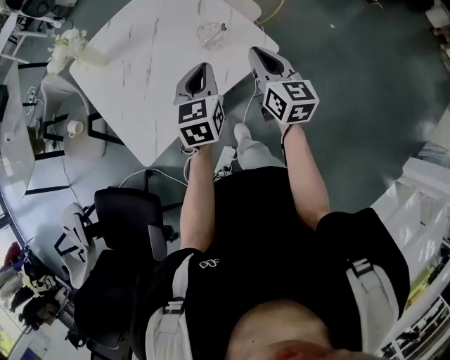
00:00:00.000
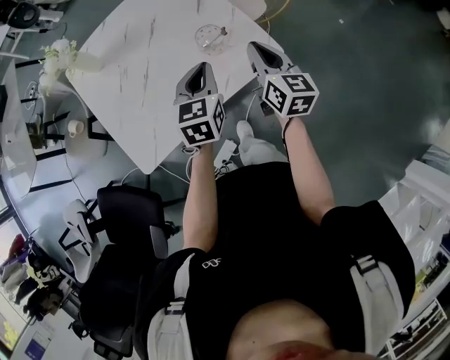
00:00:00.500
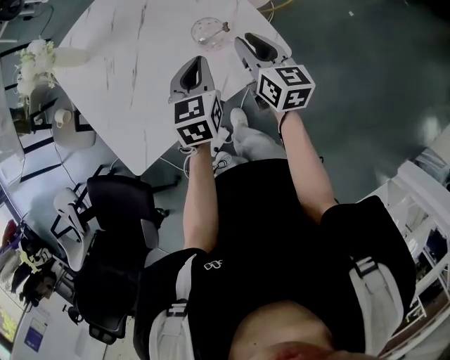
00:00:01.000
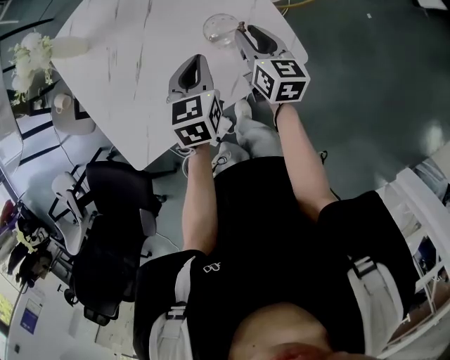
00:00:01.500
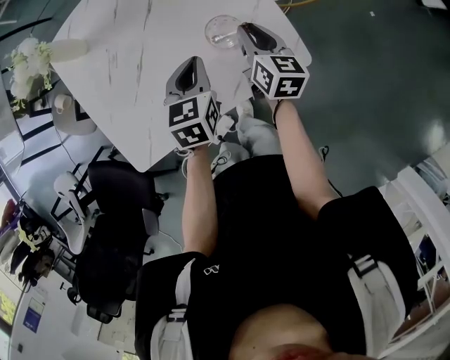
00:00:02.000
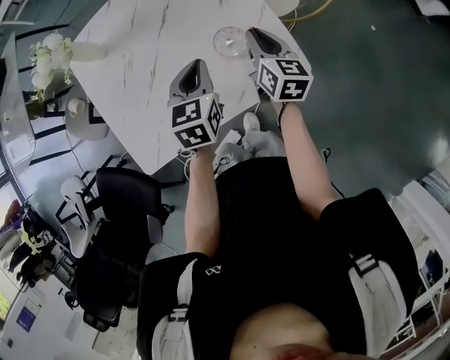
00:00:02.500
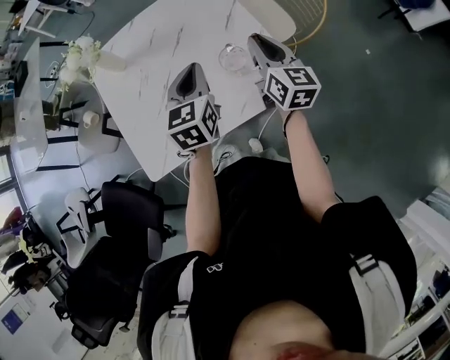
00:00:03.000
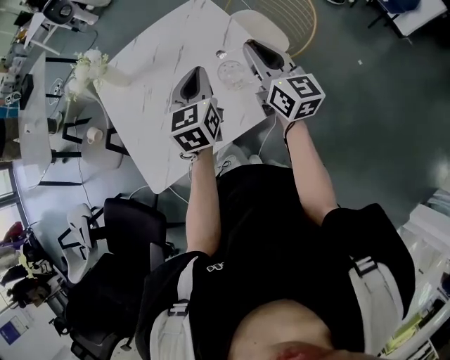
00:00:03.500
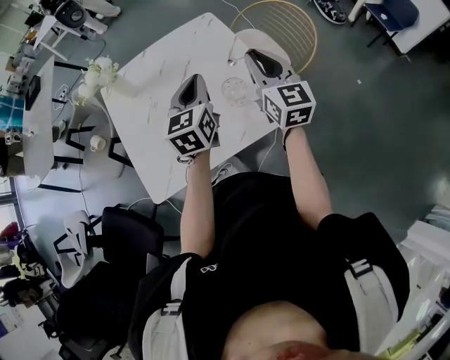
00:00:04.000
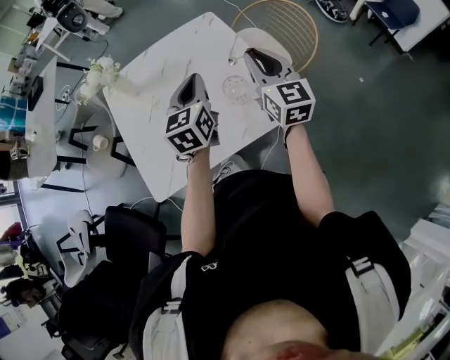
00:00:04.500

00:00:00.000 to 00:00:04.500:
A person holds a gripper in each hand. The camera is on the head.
00:00:00.000 to 00:00:02.000: The right gripper travels forward and downward by roughly 25 cm. Meanwhile the left gripper goes approximately 15 cm downward and forward.
00:00:02.000 to 00:00:04.500: Both grippers travel together upward, approximately 20 cm. The right gripper rotates roughly 30 degrees. Meanwhile the left gripper swivels about 20 degrees.

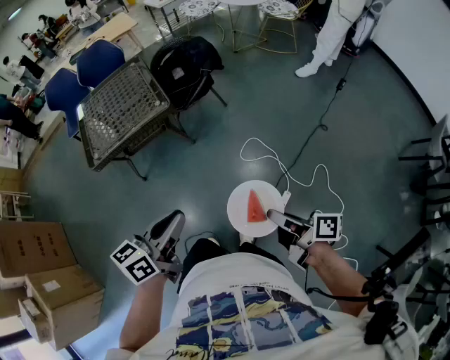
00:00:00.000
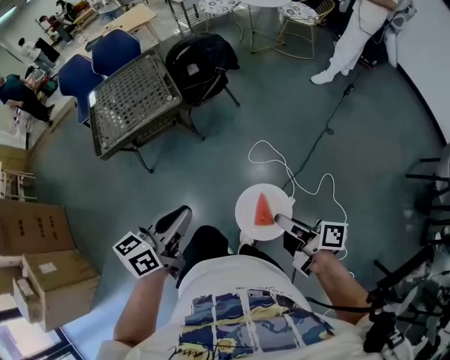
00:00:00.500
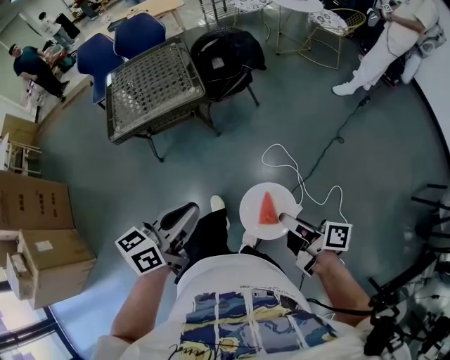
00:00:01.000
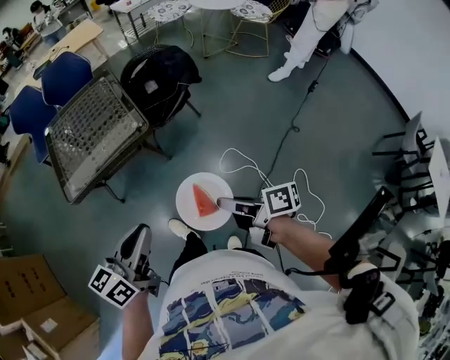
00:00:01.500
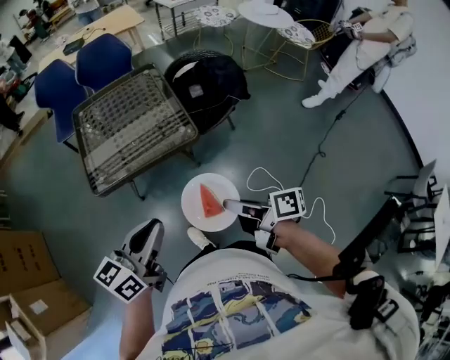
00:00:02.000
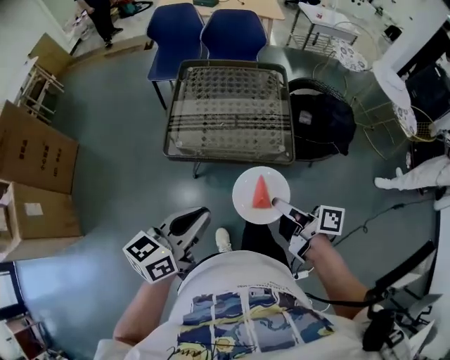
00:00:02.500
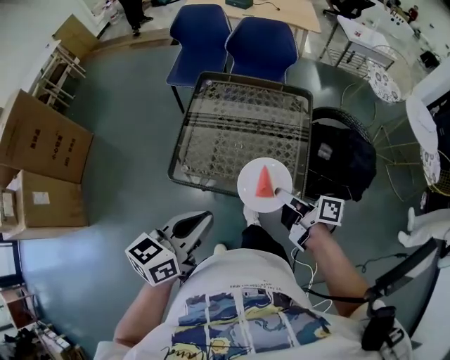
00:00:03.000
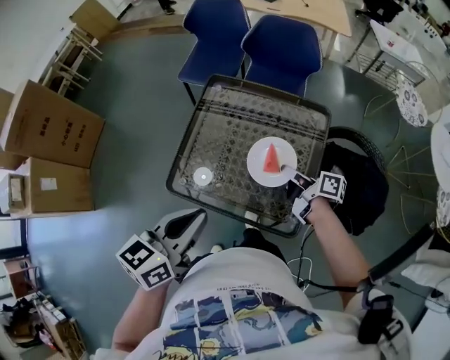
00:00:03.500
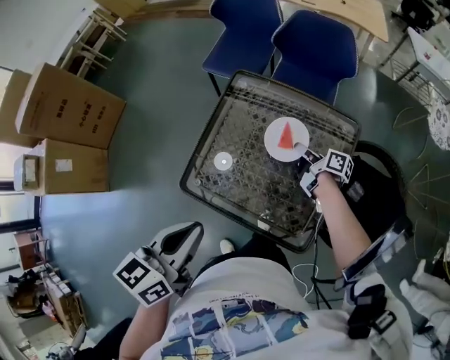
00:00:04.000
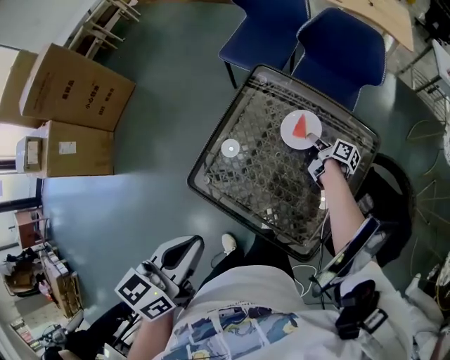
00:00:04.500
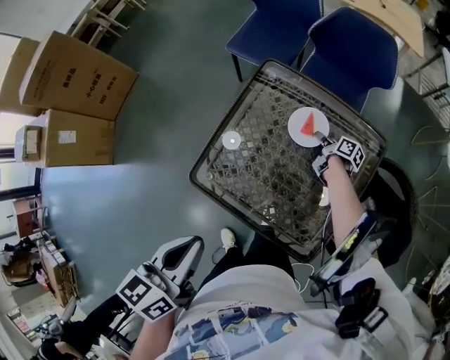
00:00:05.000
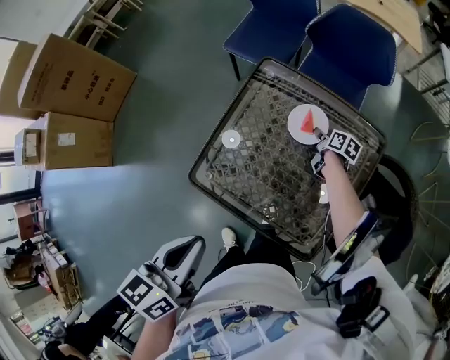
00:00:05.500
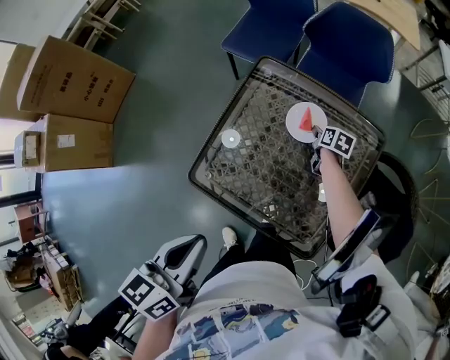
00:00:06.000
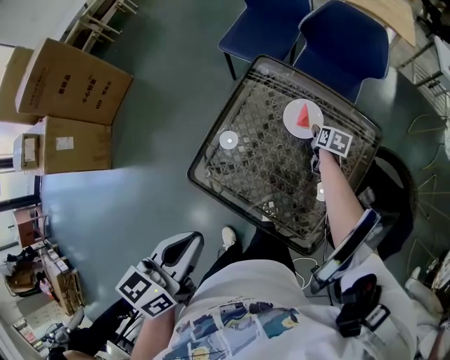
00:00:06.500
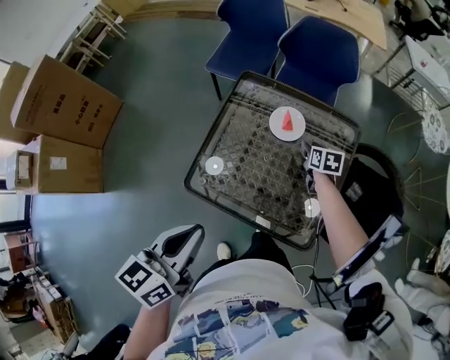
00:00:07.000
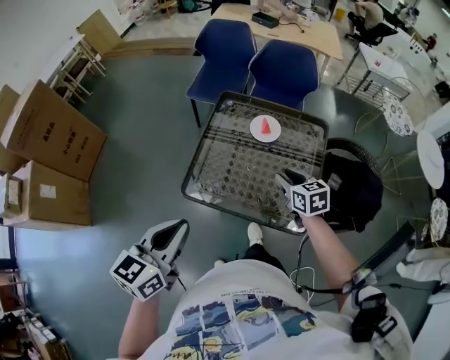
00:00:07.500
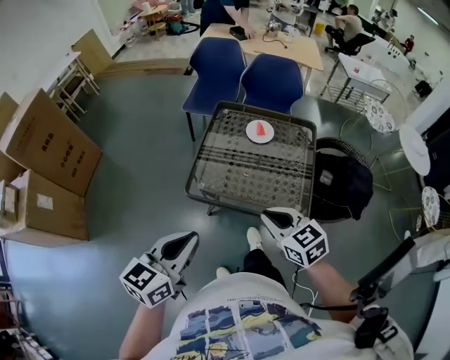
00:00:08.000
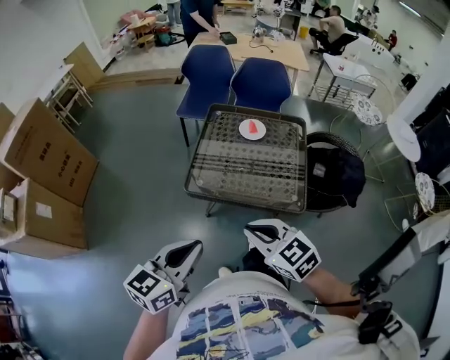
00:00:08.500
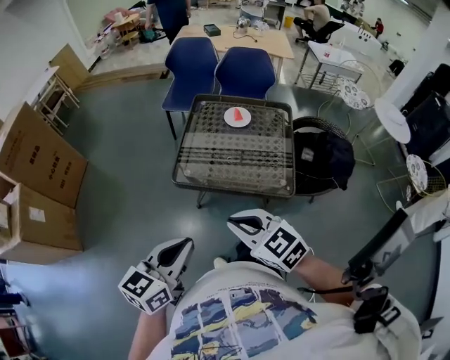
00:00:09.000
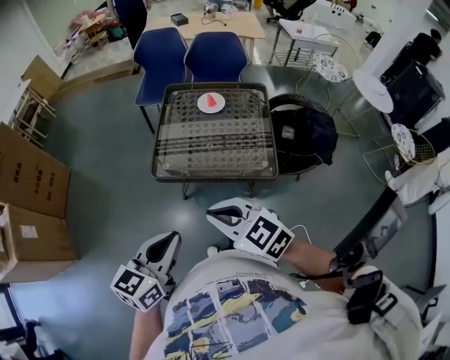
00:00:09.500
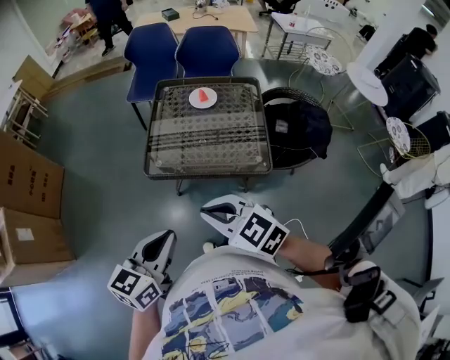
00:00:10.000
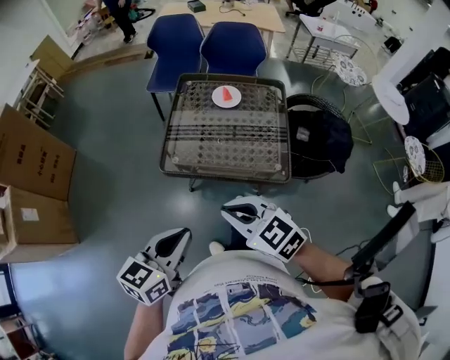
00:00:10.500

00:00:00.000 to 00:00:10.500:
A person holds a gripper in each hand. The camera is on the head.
00:00:00.000 to 00:00:02.000: Both grippers move forward and to the left, roughly 30 cm.
00:00:02.000 to 00:00:04.000: The left gripper ends up some 40 cm from where it was, and changes its angle by some 50 degrees; the right gripper changes place by roughly 70 cm, and turns by some 30 degrees.
00:00:04.000 to 00:00:06.500: The right gripper is displaced downward and forward by approximately 15 cm, points its fingers approximately 40 degrees further downward, and opens its fingers.
00:00:06.500 to 00:00:08.500: The left gripper shifts approximately 25 cm backward, and changes its angle by some 40 degrees. The right gripper travels backward, upward and to the left by some 70 cm, rolls counterclockwise, seen from behind, by some 40 degrees, and closes its fingers.
00:00:08.500 to 00:00:10.500: The left gripper ends up some 5 cm from where it was.

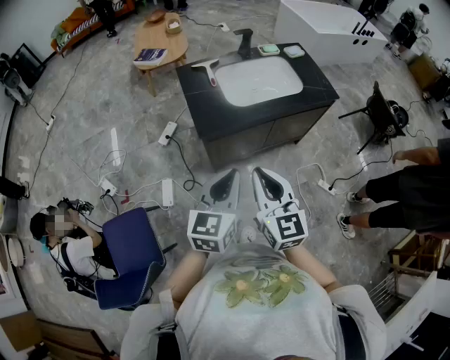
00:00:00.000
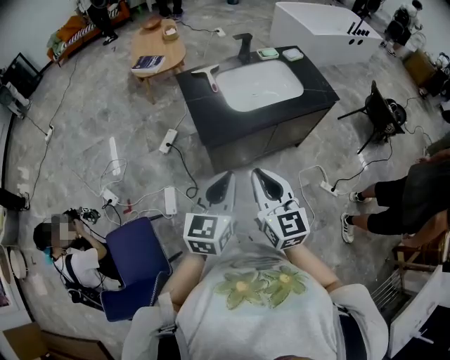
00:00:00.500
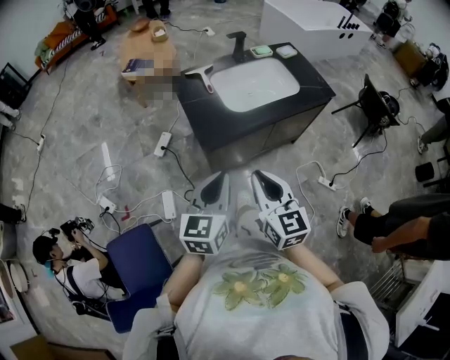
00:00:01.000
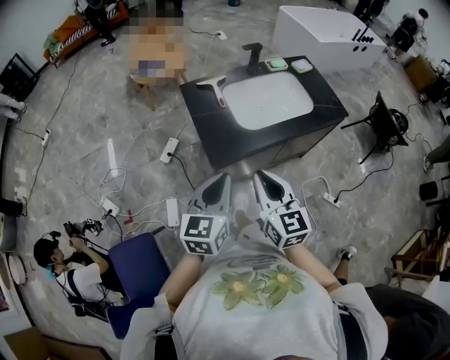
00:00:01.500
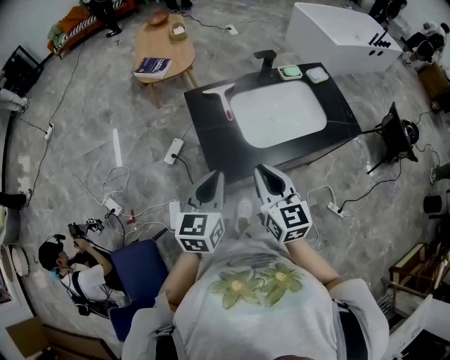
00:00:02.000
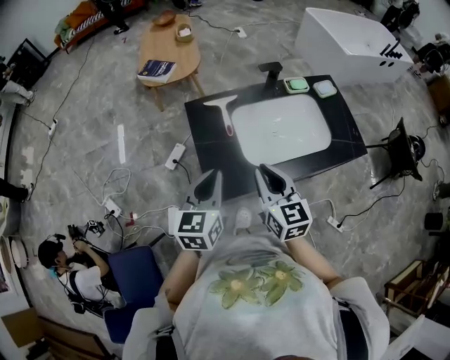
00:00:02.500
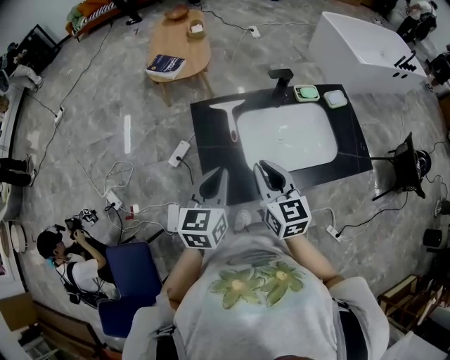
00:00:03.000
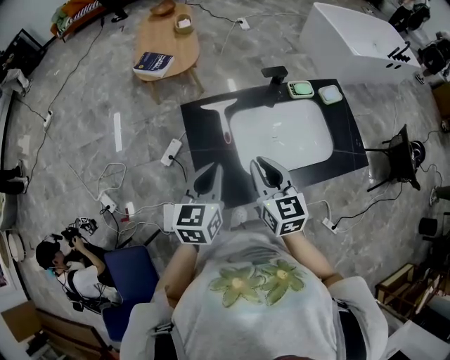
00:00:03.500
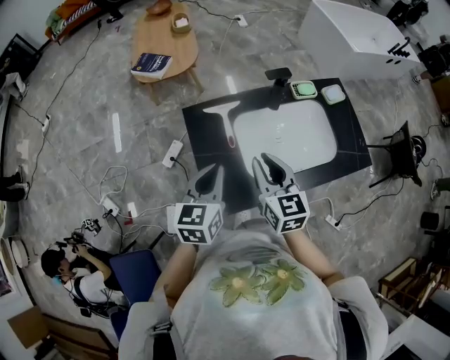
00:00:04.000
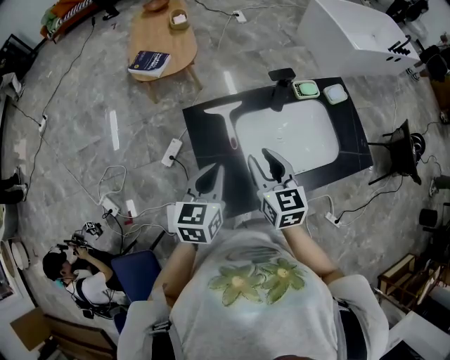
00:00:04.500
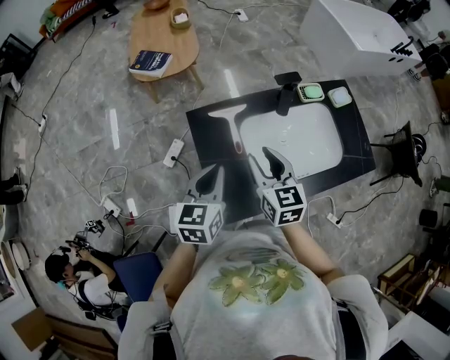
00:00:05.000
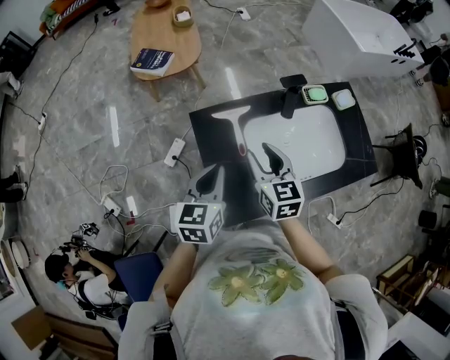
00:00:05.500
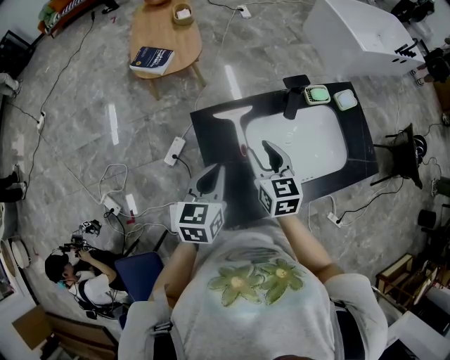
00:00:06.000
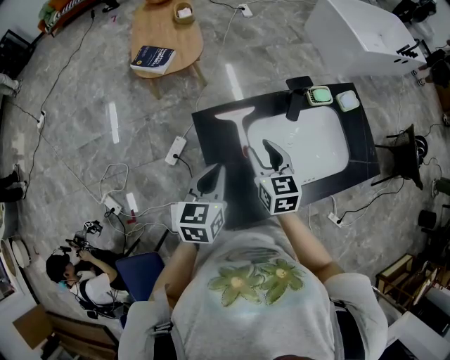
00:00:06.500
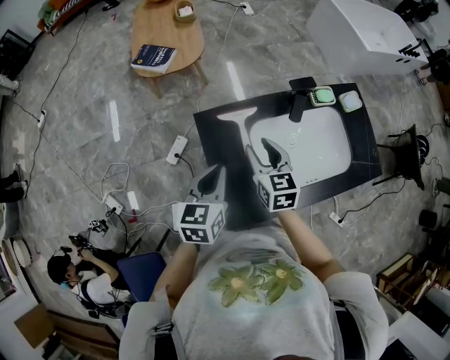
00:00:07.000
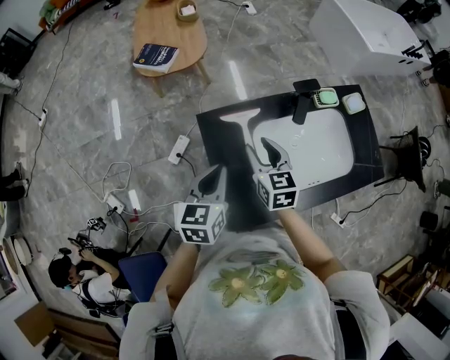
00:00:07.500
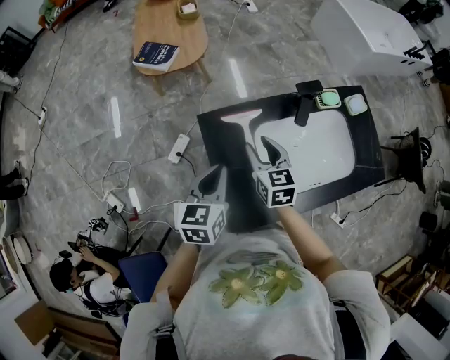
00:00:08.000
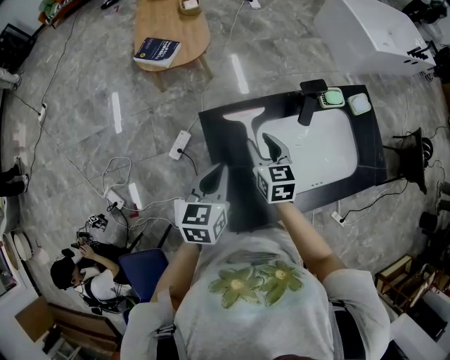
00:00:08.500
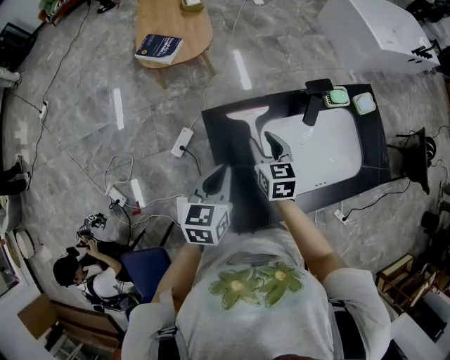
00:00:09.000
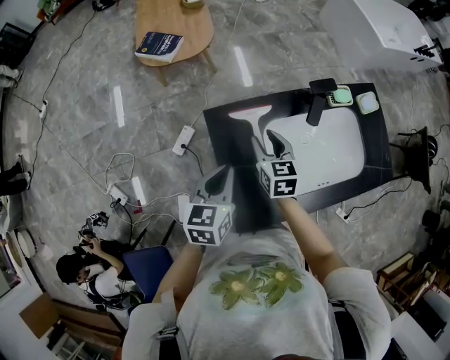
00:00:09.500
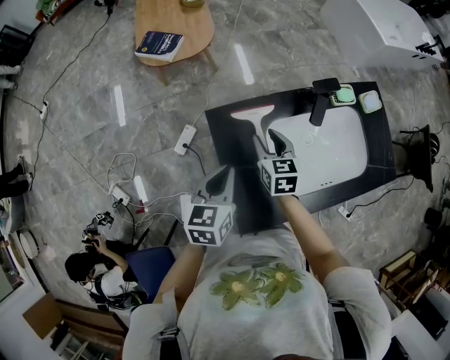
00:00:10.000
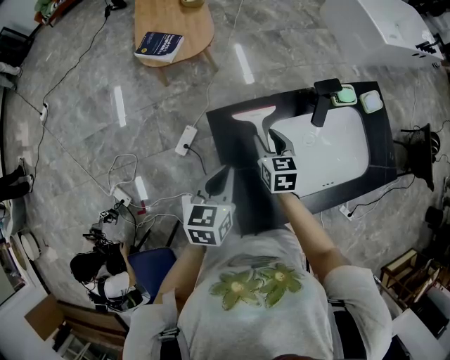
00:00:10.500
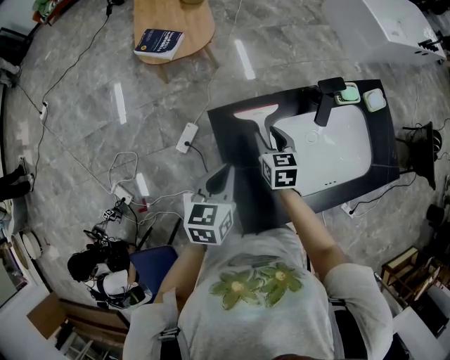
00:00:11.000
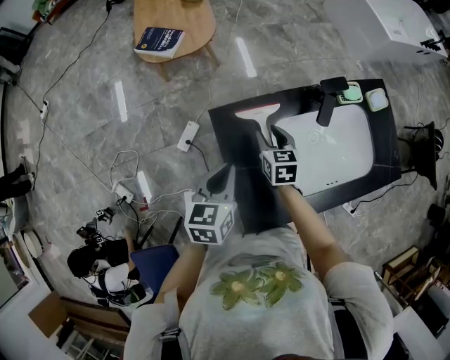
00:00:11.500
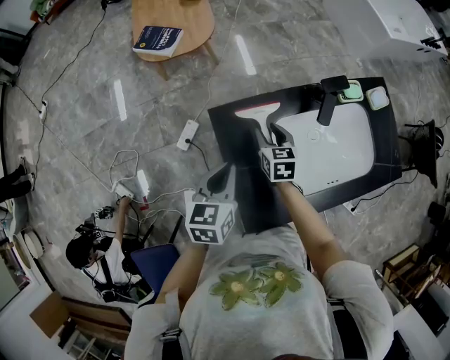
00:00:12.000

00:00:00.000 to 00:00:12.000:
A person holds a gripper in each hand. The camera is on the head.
00:00:00.000 to 00:00:02.000: The left gripper goes some 25 cm forward and to the left; the right gripper shifts approximately 25 cm forward.
00:00:02.000 to 00:00:04.000: The two grippers go some 15 cm forward.
00:00:04.000 to 00:00:06.000: The left gripper moves forward, approximately 5 cm; the right gripper is displaced forward by about 10 cm, and opens up.
00:00:06.000 to 00:00:08.000: The right gripper ends up approximately 5 cm from where it was.
00:00:08.000 to 00:00:10.000: The right gripper moves downward, roughly 5 cm.
00:00:10.000 to 00:00:12.000: The right gripper goes approximately 5 cm downward.
